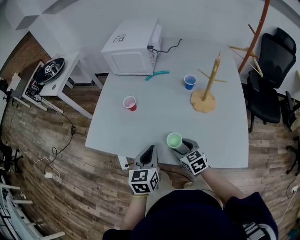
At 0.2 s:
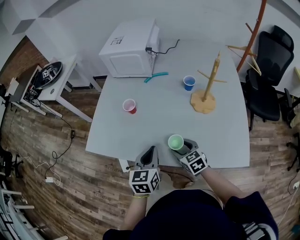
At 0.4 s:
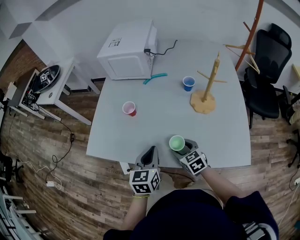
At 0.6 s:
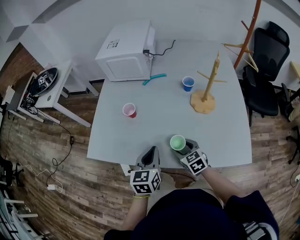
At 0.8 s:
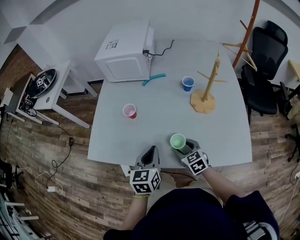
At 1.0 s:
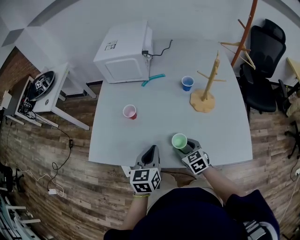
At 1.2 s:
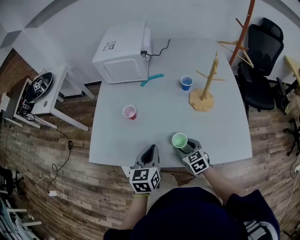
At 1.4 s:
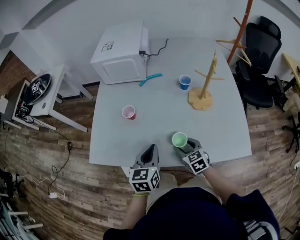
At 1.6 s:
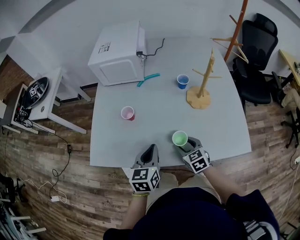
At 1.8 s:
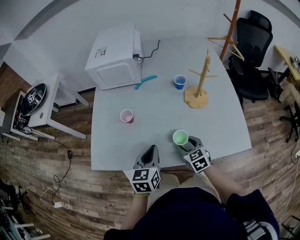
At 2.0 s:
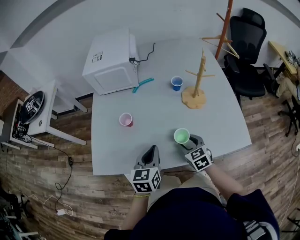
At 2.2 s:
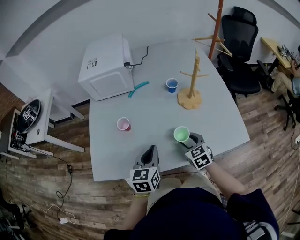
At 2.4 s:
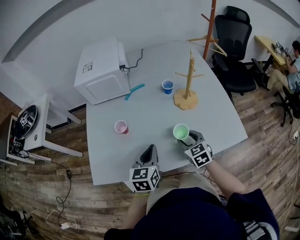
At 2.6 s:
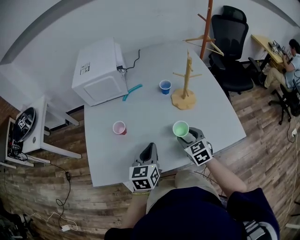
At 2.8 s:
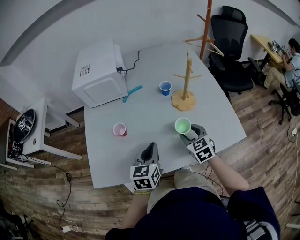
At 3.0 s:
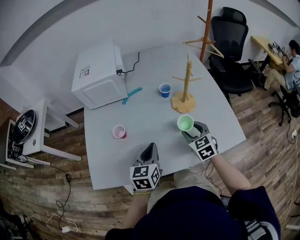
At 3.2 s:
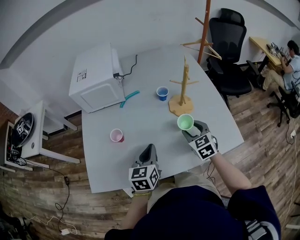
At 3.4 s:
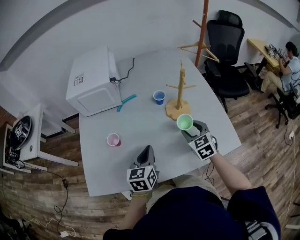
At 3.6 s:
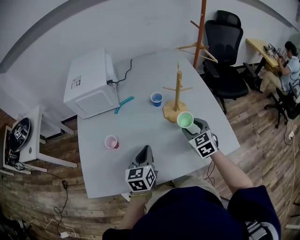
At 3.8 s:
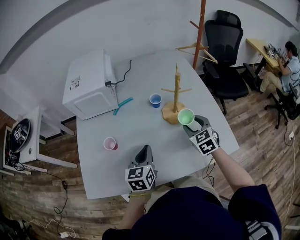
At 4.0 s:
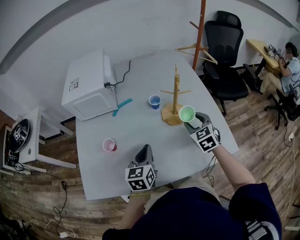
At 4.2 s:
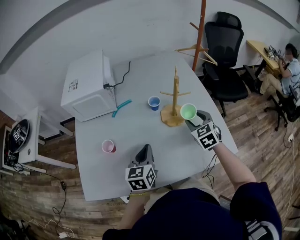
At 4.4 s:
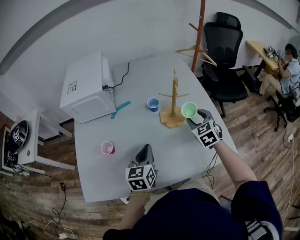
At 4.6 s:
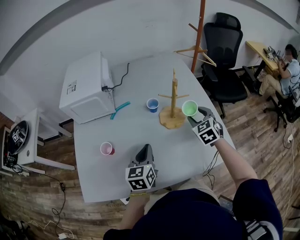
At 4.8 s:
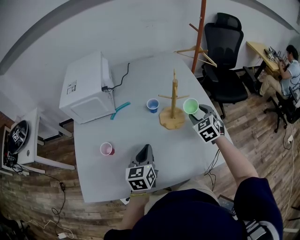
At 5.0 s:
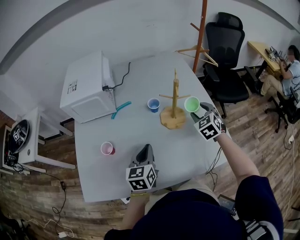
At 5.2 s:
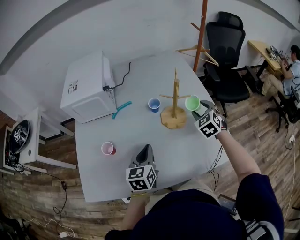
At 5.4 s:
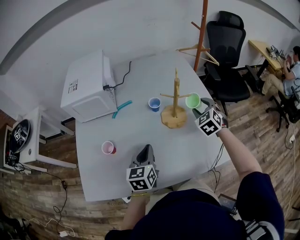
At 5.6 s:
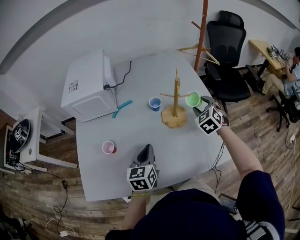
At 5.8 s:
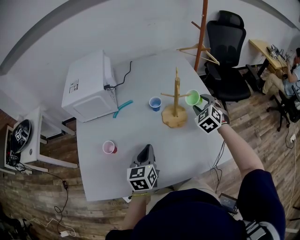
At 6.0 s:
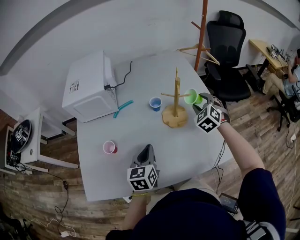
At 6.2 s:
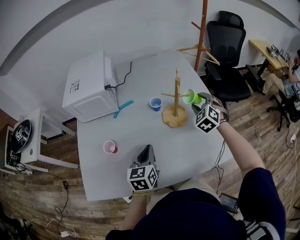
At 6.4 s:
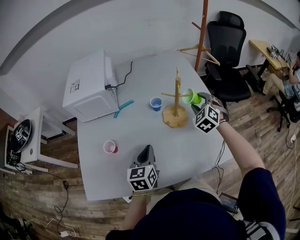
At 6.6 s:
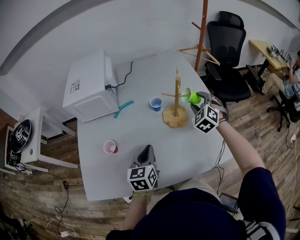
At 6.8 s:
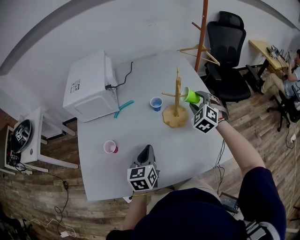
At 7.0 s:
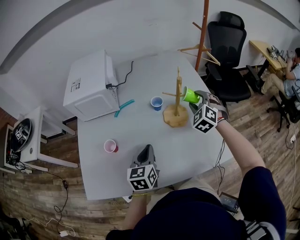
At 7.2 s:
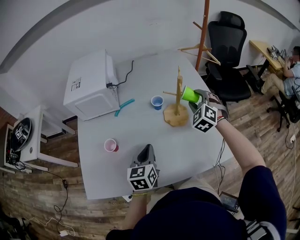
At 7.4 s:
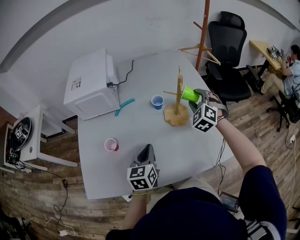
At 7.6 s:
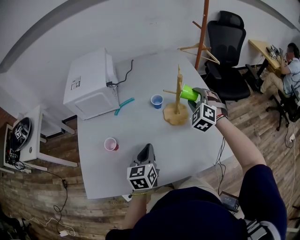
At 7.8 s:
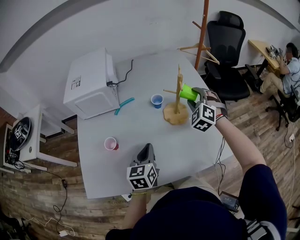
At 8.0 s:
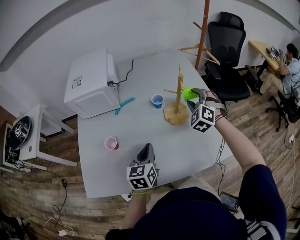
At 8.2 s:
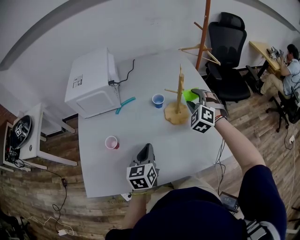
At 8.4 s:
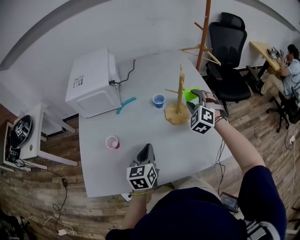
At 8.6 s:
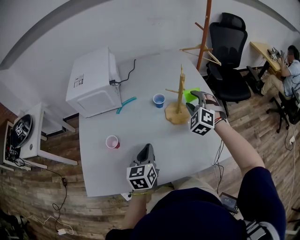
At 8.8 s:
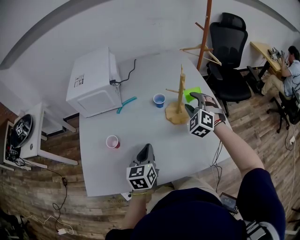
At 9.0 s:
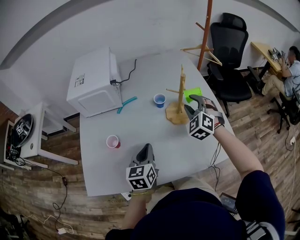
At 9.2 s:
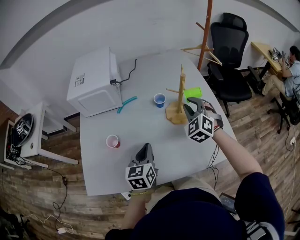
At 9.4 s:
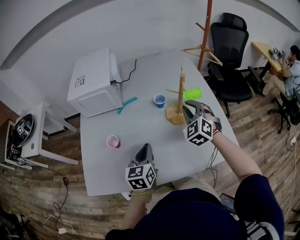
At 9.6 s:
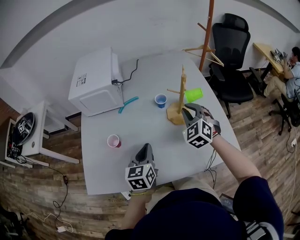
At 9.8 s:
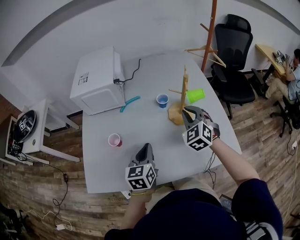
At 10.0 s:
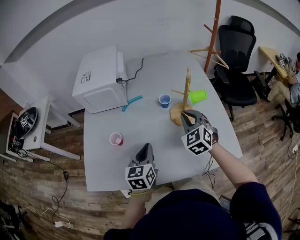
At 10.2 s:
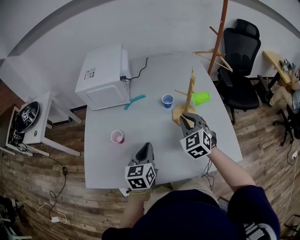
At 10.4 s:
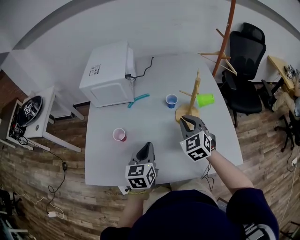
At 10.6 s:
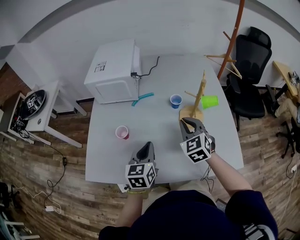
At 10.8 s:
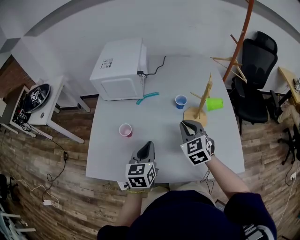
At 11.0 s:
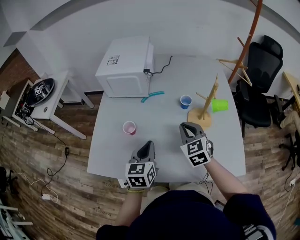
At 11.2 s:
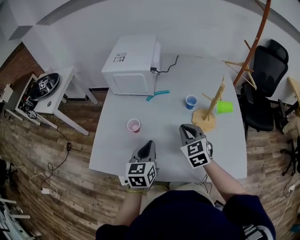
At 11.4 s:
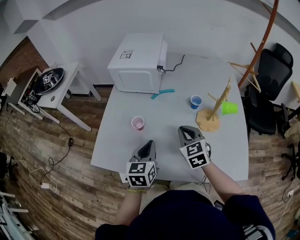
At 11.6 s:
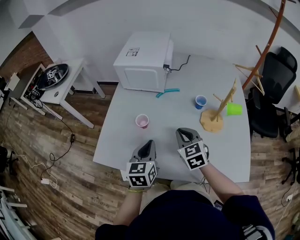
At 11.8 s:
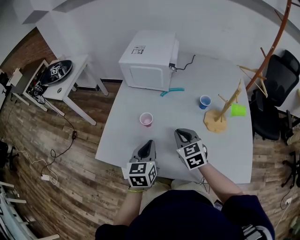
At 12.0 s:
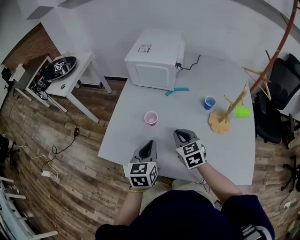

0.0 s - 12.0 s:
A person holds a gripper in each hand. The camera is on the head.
0.0 s - 1.6 s: The left gripper shifts by about 5 cm.
1.6 s - 3.0 s: The left gripper shifts approximately 5 cm forward, while the right gripper moves upward, to the right and forward, some 15 cm.
3.0 s - 4.4 s: The right gripper travels forward, to the right and upward by about 15 cm. The left gripper is displaced forward by approximately 5 cm.
4.4 s - 6.0 s: The right gripper is displaced forward by some 5 cm, and turns by some 20 degrees.
6.0 s - 7.6 s: The grippers make only small movements.
7.6 s - 9.0 s: There are only small adjustments of the grippers.
9.0 s - 10.4 s: The right gripper travels to the left and backward by about 10 cm, turns by some 20 degrees, and closes.
10.4 s - 12.0 s: Both grippers move to the left, approximately 15 cm. The right gripper changes its angle by roughly 30 degrees.

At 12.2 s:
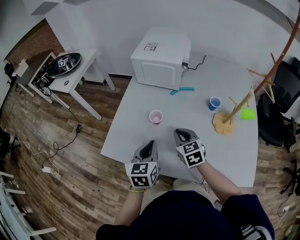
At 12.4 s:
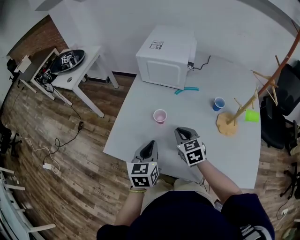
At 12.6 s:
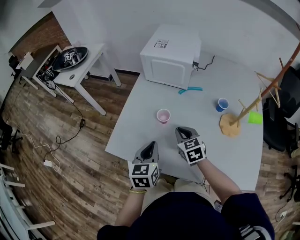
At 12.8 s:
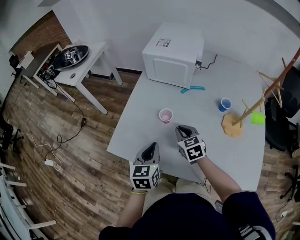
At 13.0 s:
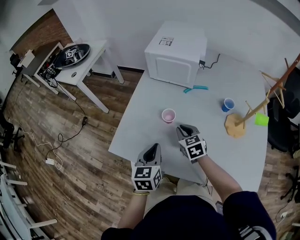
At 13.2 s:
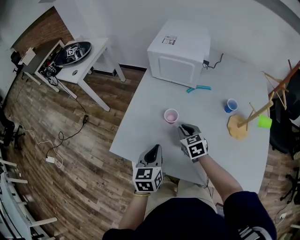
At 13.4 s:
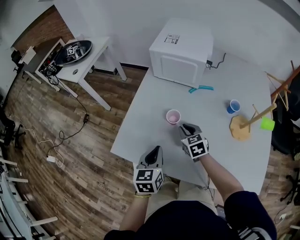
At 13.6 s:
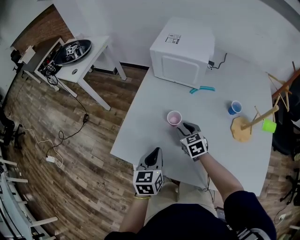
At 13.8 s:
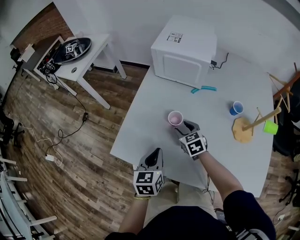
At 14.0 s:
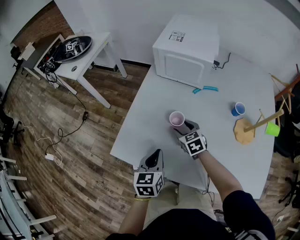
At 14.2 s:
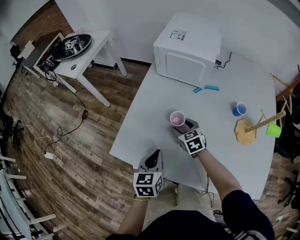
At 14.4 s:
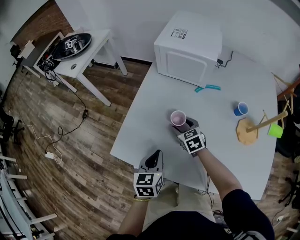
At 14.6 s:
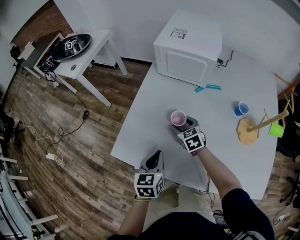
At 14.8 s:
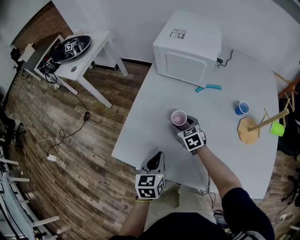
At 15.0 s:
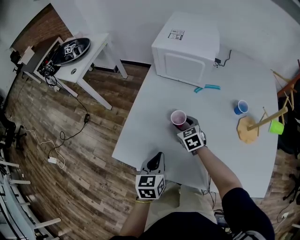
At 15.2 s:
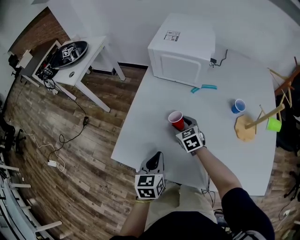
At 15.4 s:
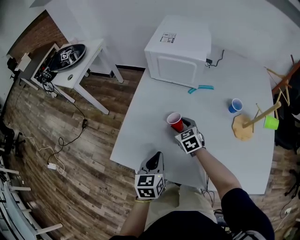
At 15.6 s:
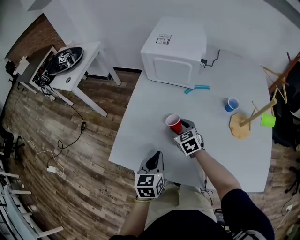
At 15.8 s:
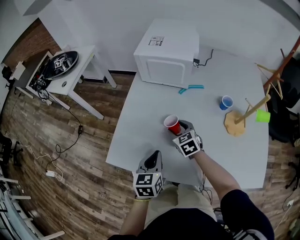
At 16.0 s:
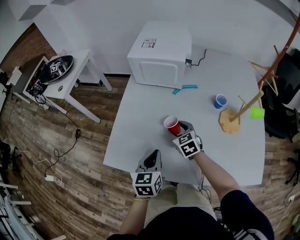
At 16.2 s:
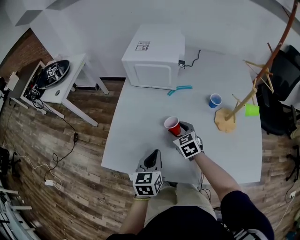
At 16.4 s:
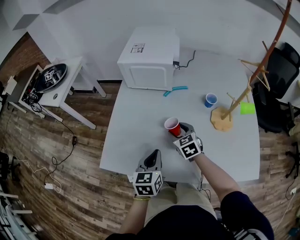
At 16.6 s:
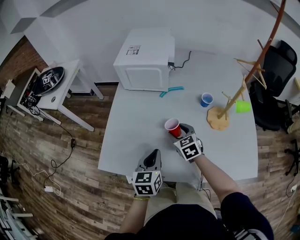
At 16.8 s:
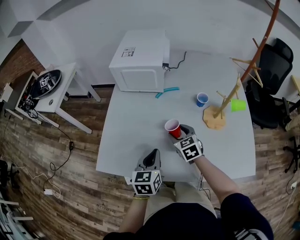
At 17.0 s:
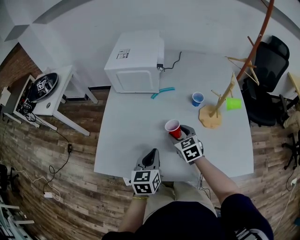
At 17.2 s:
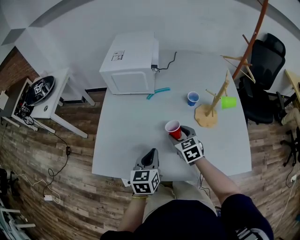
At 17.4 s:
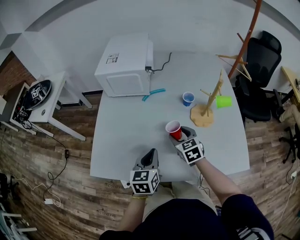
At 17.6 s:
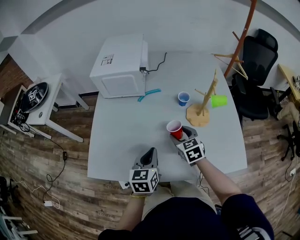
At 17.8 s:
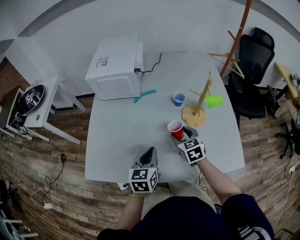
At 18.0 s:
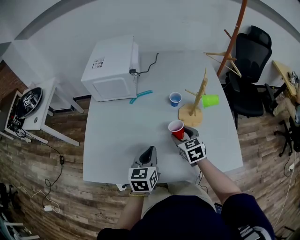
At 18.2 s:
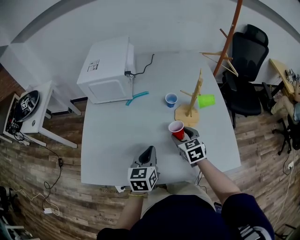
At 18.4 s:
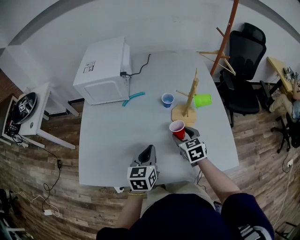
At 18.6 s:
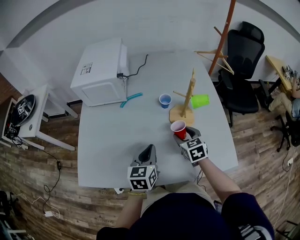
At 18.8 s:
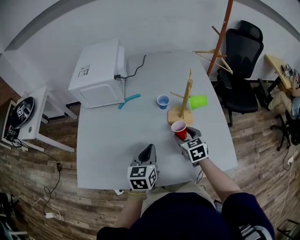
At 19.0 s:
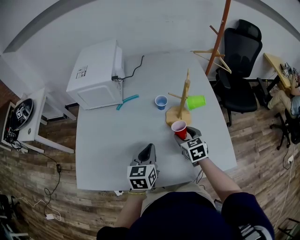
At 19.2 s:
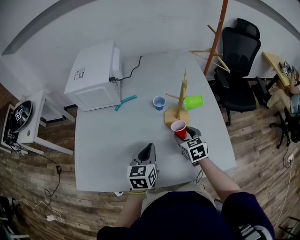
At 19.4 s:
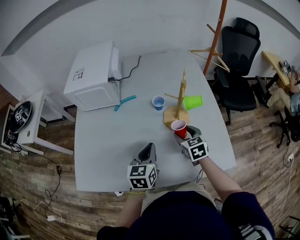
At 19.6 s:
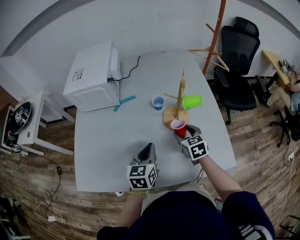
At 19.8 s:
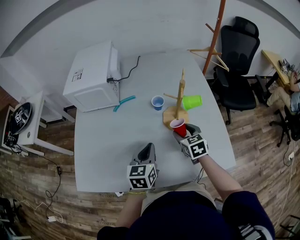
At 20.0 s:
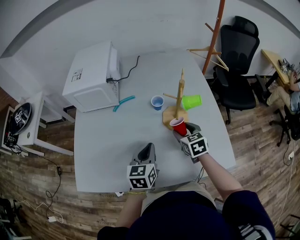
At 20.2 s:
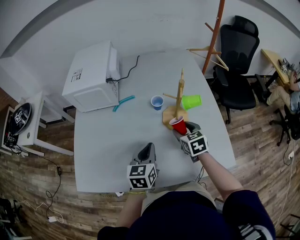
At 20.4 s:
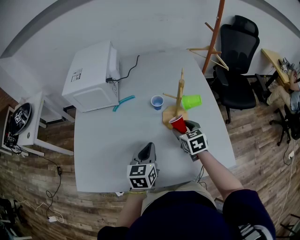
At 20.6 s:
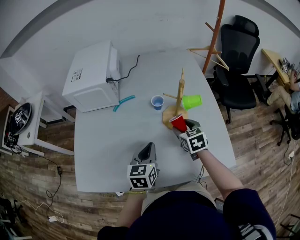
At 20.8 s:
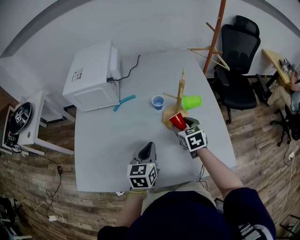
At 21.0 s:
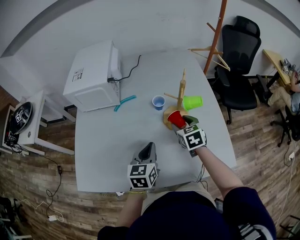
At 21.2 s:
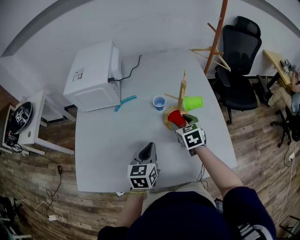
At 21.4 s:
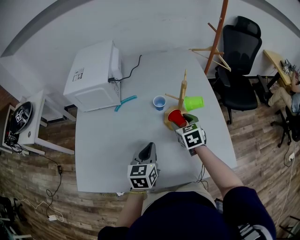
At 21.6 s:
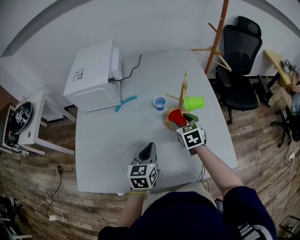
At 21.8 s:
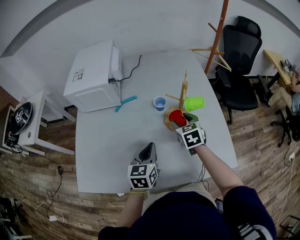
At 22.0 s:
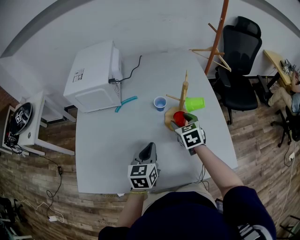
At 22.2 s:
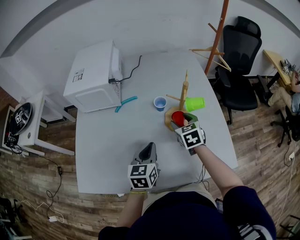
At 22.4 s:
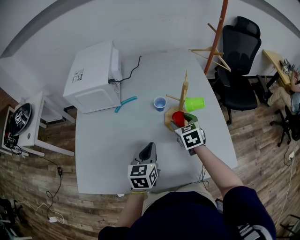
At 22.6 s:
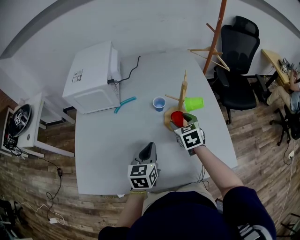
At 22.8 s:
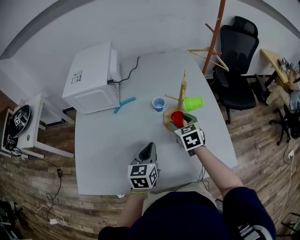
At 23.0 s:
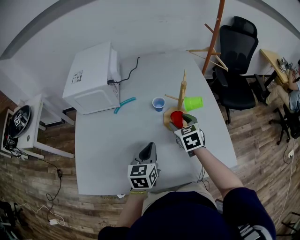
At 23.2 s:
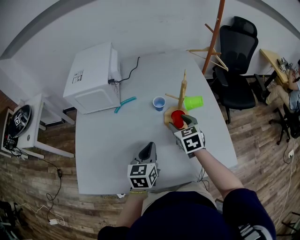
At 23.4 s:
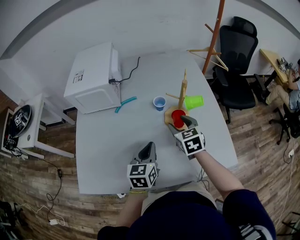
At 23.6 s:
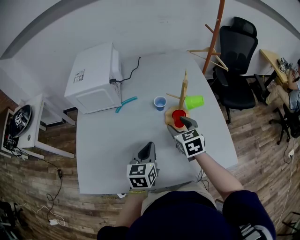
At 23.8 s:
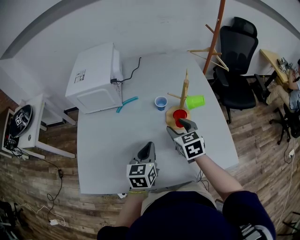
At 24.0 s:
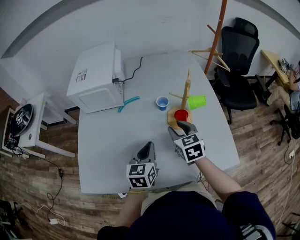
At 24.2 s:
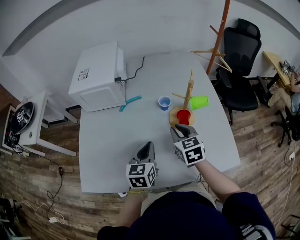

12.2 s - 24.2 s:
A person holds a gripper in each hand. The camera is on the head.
12.2 s - 13.8 s: The right gripper moves downward, forward and to the left, about 15 cm, and opens up; the left gripper moves to the left and downward, roughly 10 cm.
13.8 s - 15.2 s: The grippers stay close to where they were, moving slightly.
15.2 s - 16.6 s: The left gripper shifts roughly 10 cm to the right, while the right gripper goes roughly 15 cm to the right, backward and upward.
16.6 s - 18.2 s: The two grippers go about 15 cm to the right.
18.2 s - 19.8 s: Both grippers travel together to the right, some 5 cm.
19.8 s - 21.2 s: The right gripper ends up approximately 5 cm from where it was.
21.2 s - 22.6 s: The grippers move only a little.
22.6 s - 24.2 s: The right gripper goes approximately 5 cm backward, and closes up.
